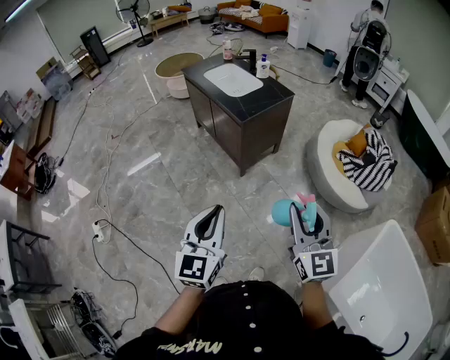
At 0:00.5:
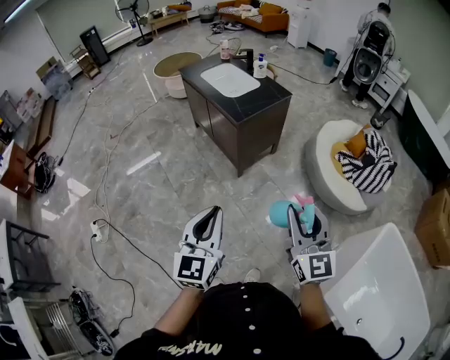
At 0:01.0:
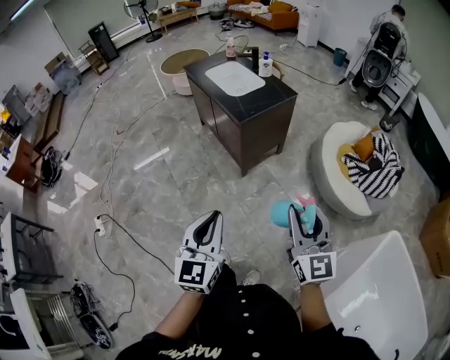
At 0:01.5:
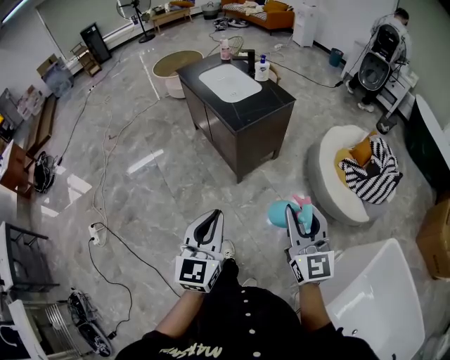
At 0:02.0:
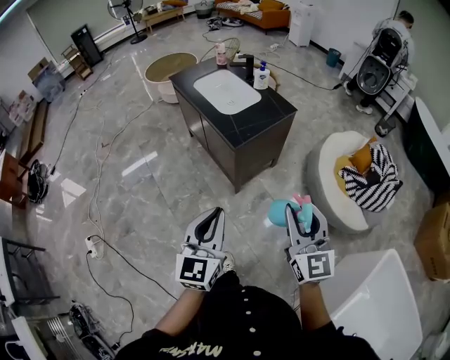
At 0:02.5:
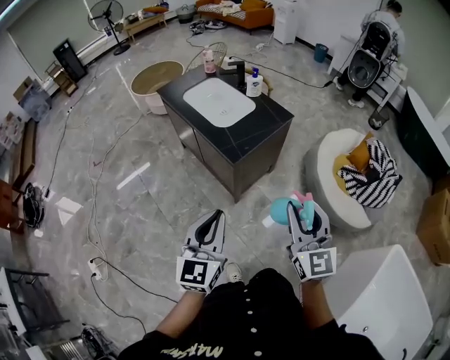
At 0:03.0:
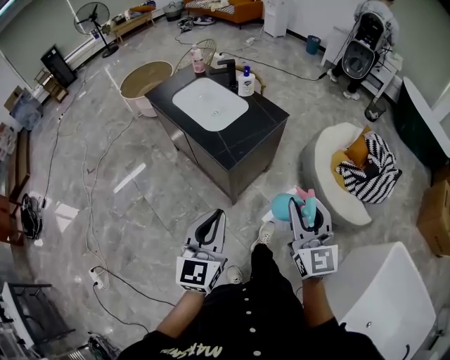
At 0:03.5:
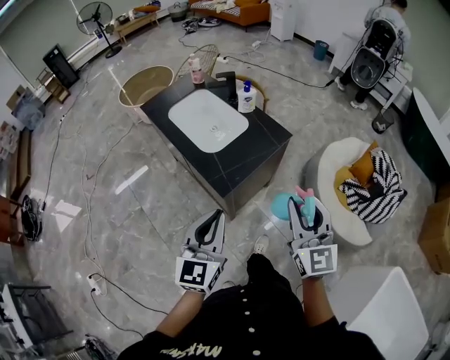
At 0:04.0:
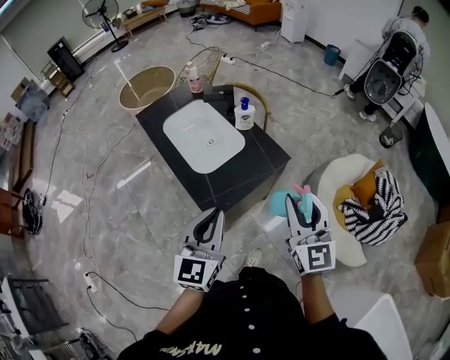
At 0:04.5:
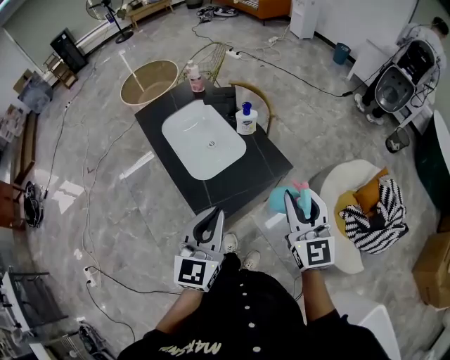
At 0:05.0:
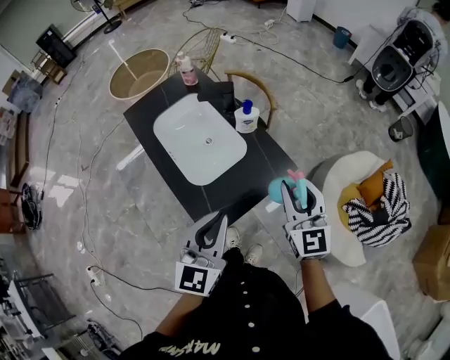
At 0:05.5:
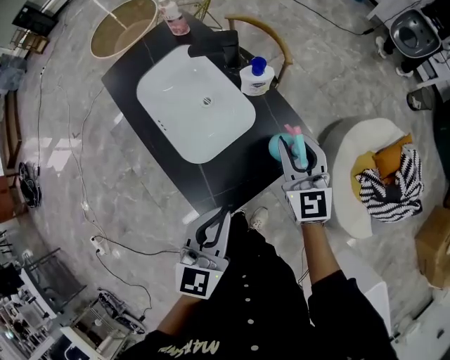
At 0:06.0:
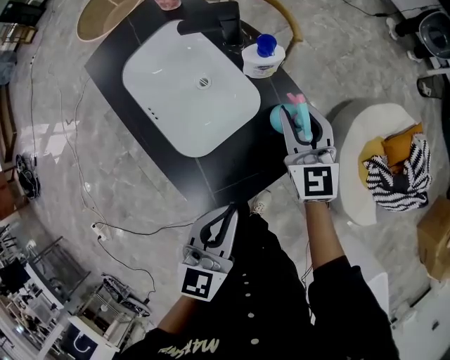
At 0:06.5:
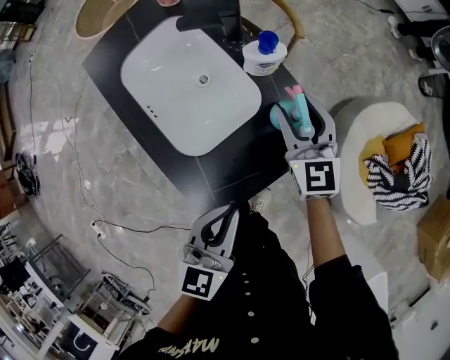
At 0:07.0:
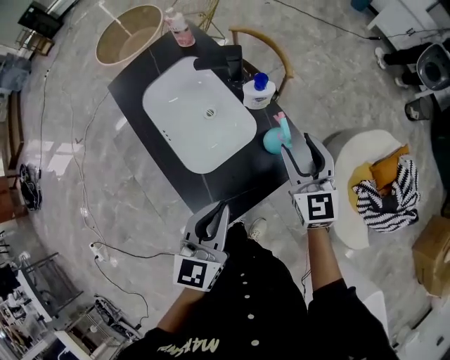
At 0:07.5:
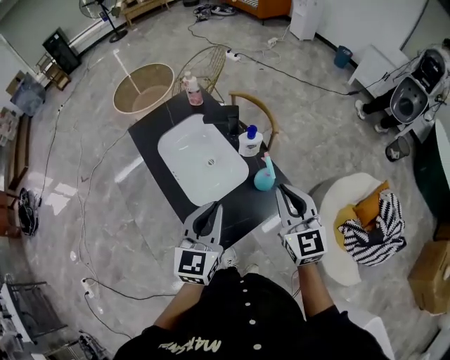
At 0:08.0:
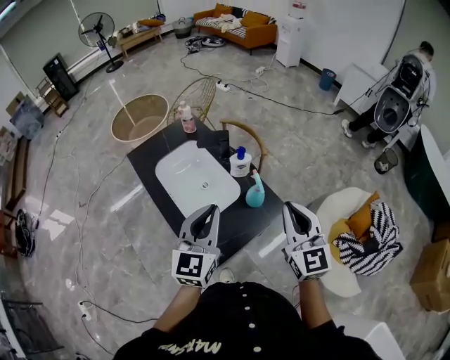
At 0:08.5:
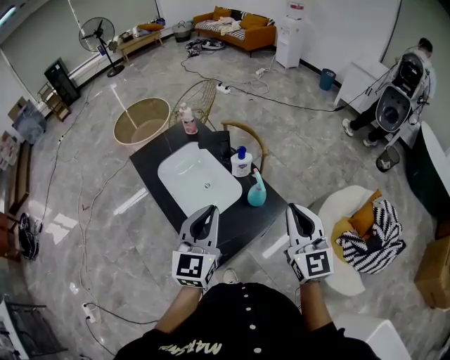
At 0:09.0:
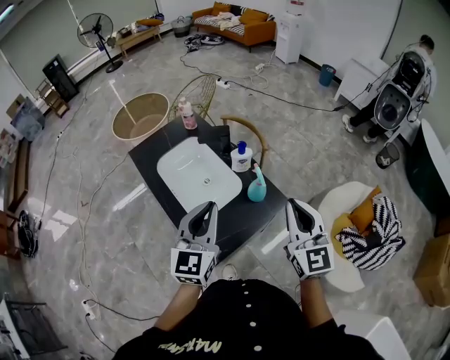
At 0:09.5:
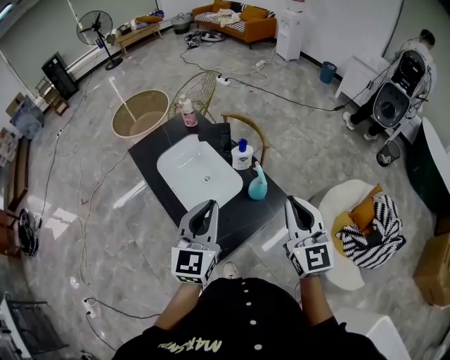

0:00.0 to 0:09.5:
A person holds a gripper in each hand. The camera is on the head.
0:00.0 to 0:02.0: Both grippers move forward, approximately 20 cm.
0:02.0 to 0:04.0: The two grippers travel together, forward, roughly 40 cm.
0:04.0 to 0:05.5: The right gripper travels forward and downward by roughly 35 cm, while the left gripper shifts approximately 20 cm forward and downward.
0:05.5 to 0:07.5: The left gripper heads upward and forward, covering about 10 cm. Meanwhile the right gripper shifts some 15 cm upward and backward, and closes.
0:07.5 to 0:09.5: The right gripper shifts roughly 10 cm upward and backward, while the left gripper is displaced upward by some 5 cm.

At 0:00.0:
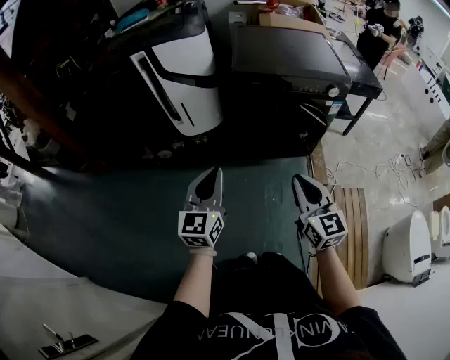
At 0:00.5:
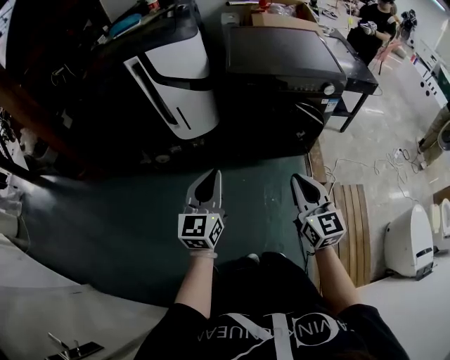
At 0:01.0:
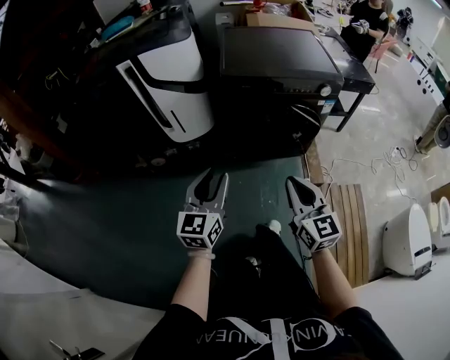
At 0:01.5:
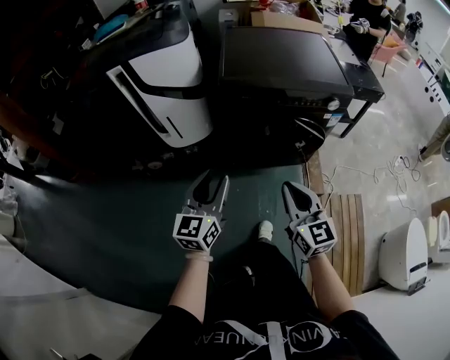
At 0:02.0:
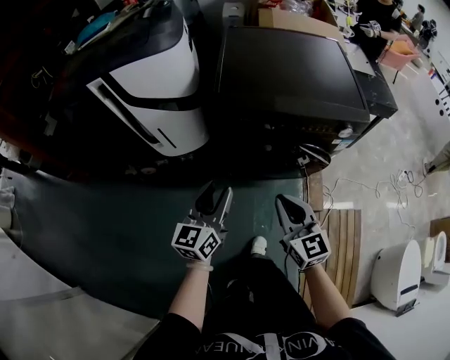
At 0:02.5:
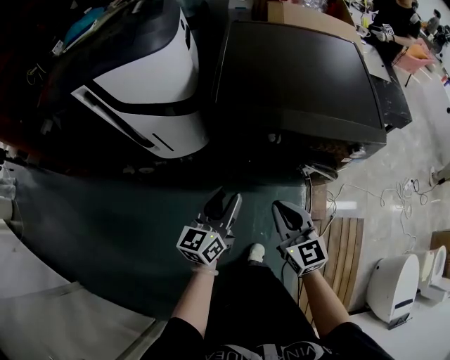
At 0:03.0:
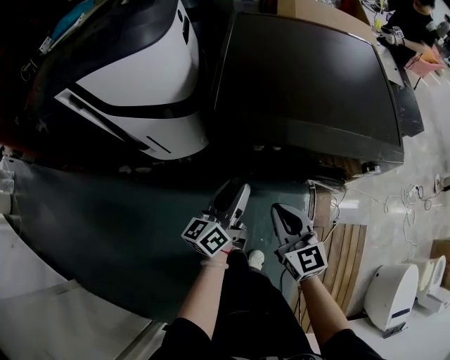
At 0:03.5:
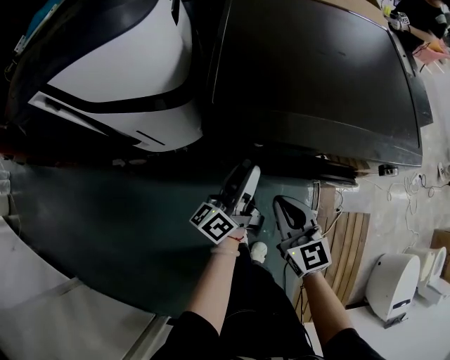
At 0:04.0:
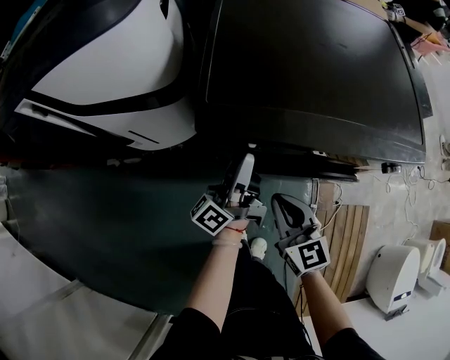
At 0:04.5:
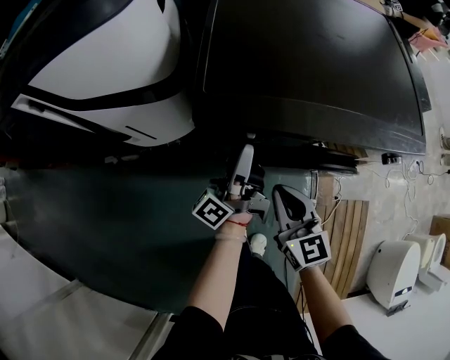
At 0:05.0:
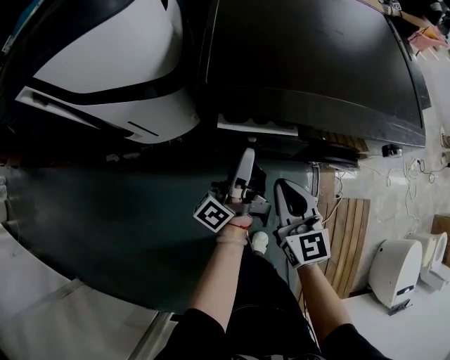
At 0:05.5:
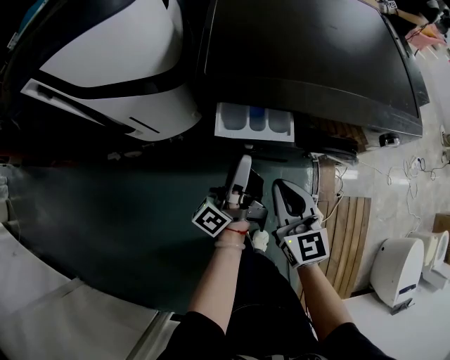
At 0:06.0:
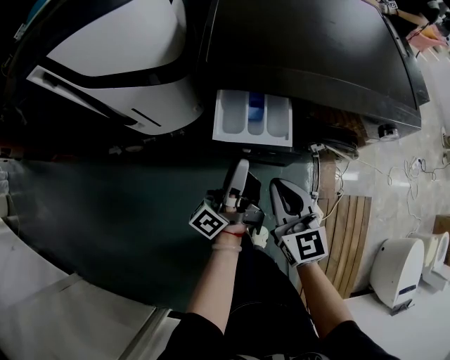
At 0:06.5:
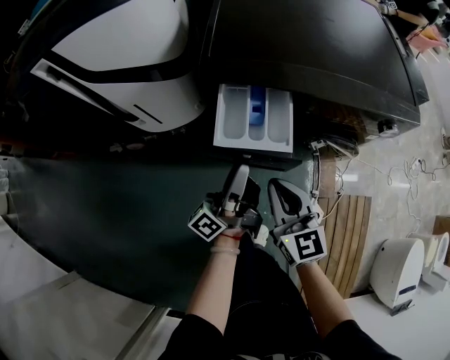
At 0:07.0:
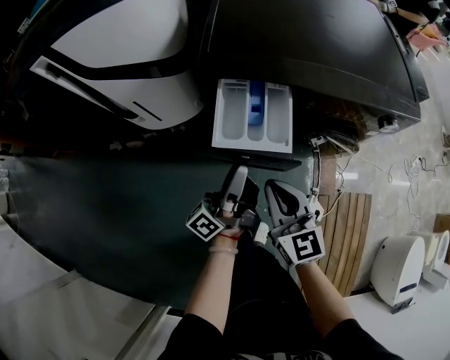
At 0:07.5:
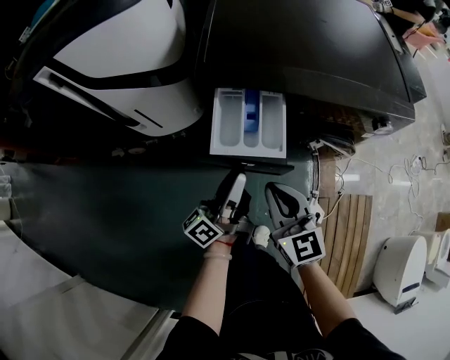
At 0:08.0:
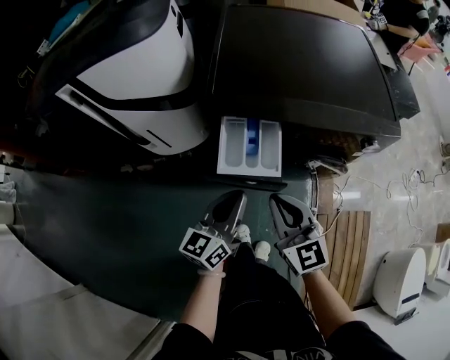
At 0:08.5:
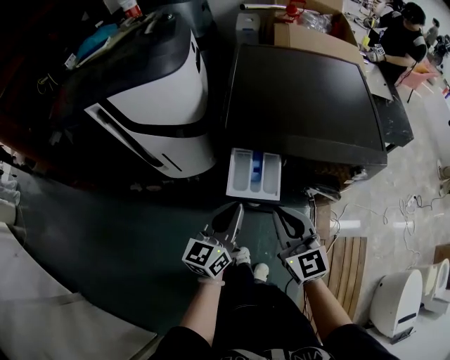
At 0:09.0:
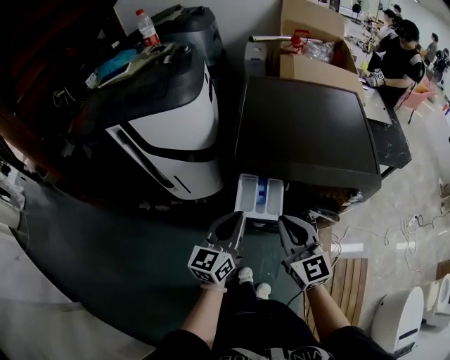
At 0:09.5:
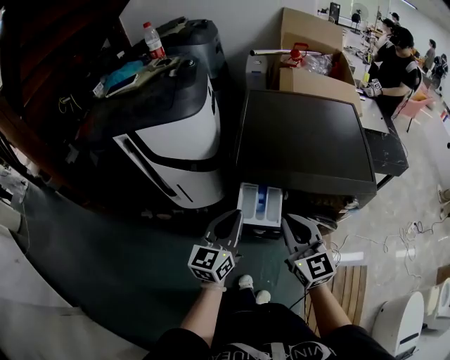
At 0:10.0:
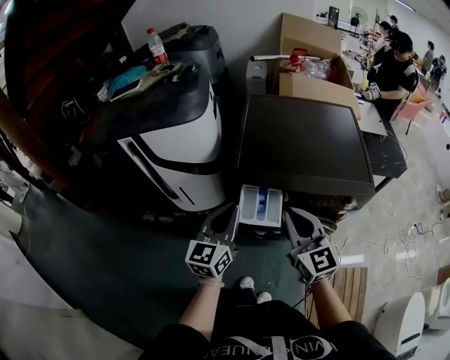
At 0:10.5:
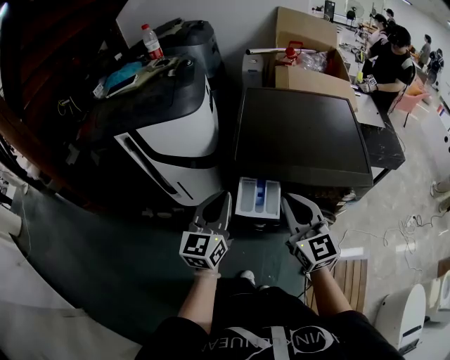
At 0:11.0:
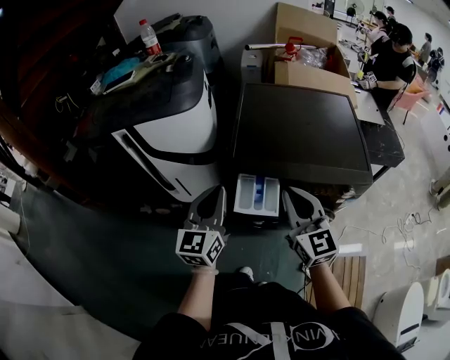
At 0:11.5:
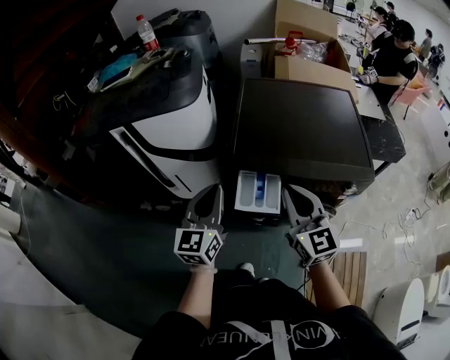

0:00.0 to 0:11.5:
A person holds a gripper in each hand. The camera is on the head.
0:00.0 to 0:02.0: Both grippers move forward, approximately 25 cm. The left gripper opens.
0:02.0 to 0:04.0: The grippers both shift forward and downward by some 25 cm. The left gripper rotates around the line of its fingers by approximately 50 degrees, counterclockwise from behind.
0:04.0 to 0:06.0: The left gripper moves backward, roughly 10 cm. Meanwhile the right gripper travels backward by roughly 5 cm.
0:06.0 to 0:07.5: The grippers stay close to where they were, moving slightly.
0:07.5 to 0:09.5: Both grippers move upward, roughly 20 cm. The left gripper rolls clockwise, seen from behind, by about 50 degrees.
0:09.5 to 0:11.5: The left gripper travels to the left and upward by approximately 5 cm; the right gripper shifts by some 5 cm.

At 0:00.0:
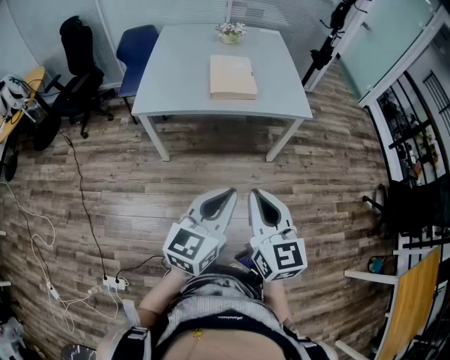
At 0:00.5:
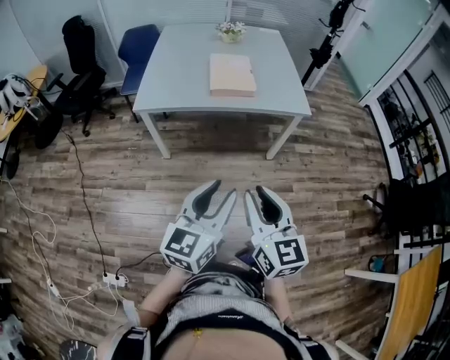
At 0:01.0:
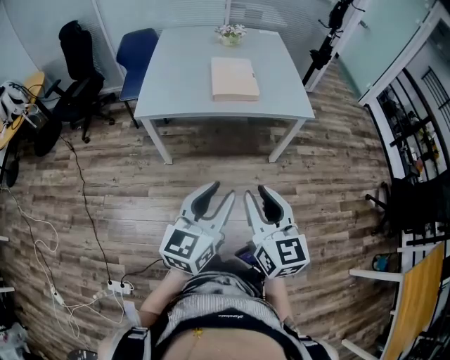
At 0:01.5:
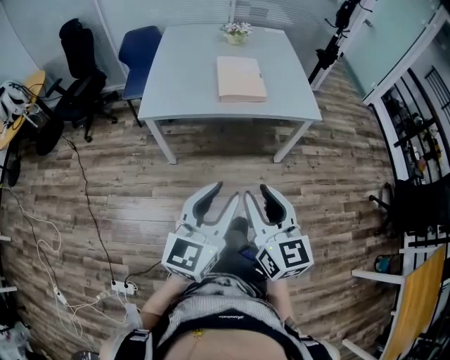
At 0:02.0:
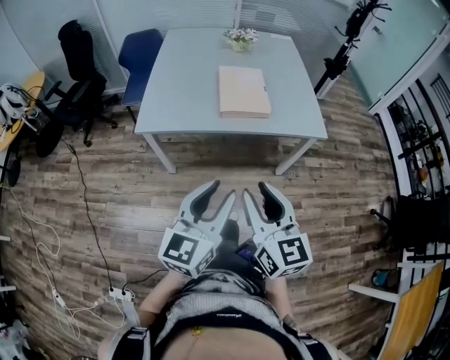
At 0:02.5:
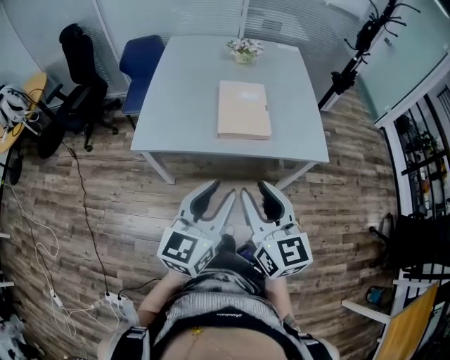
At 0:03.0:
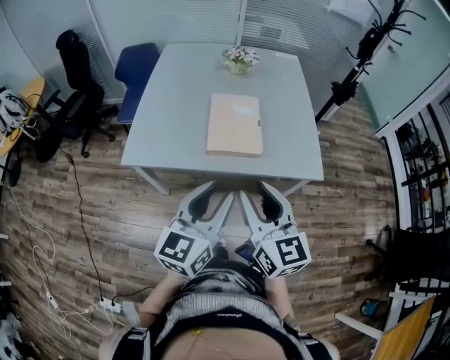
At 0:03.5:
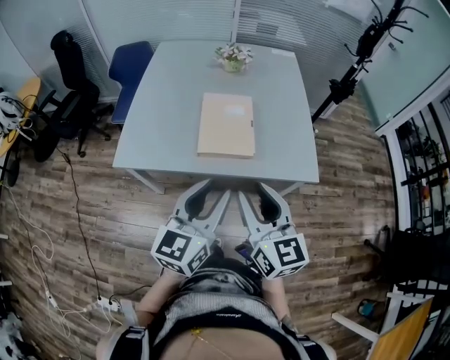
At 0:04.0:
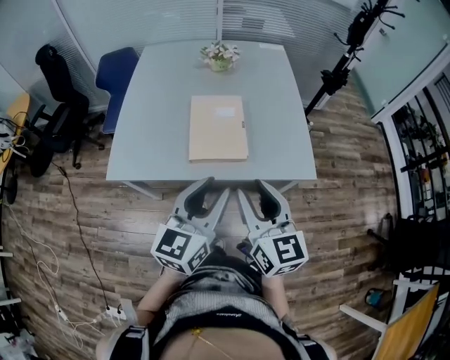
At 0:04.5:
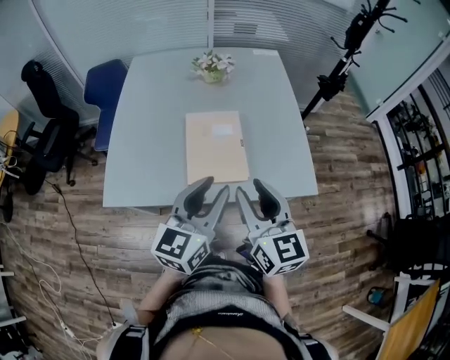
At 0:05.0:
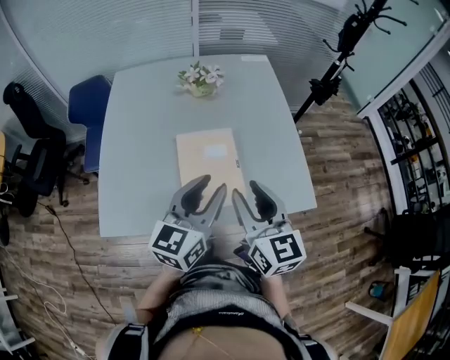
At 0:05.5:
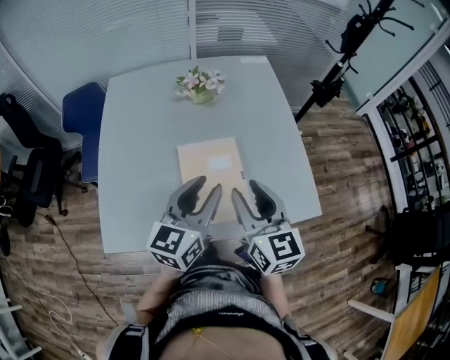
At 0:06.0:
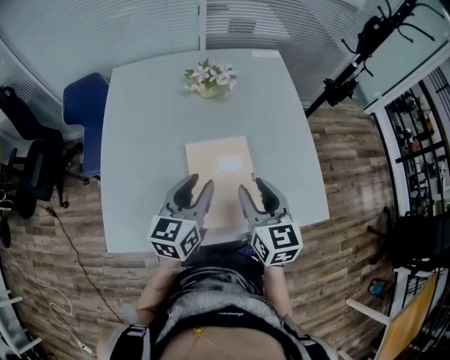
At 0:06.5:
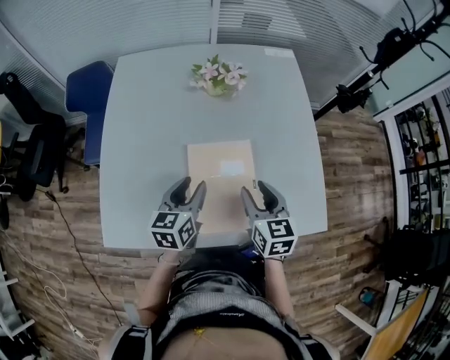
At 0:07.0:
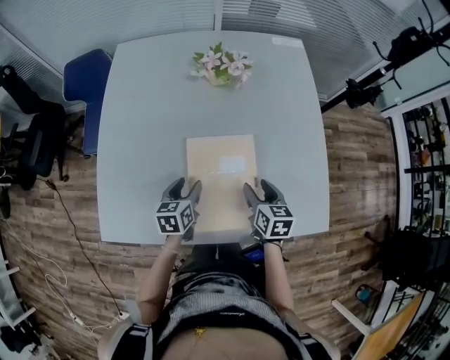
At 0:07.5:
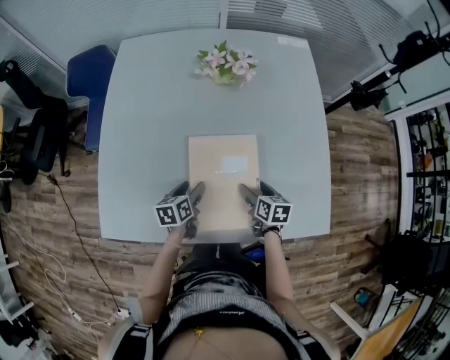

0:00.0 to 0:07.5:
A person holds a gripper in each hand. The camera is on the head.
0:00.0 to 0:02.0: The left gripper shifts roughly 15 cm forward and to the left, and opens its fingers. Meanwhile the right gripper goes some 15 cm forward, and opens its fingers.
0:02.0 to 0:04.0: The grippers both shift forward and to the right by some 30 cm.
0:04.0 to 0:05.5: Both grippers travel together forward, some 25 cm.
0:05.5 to 0:07.5: The two grippers go roughly 35 cm downward. The left gripper tilts its fingers some 40 degrees downward, and opens its fingers, while the right gripper tilts its fingers some 30 degrees downward, and opens up.
